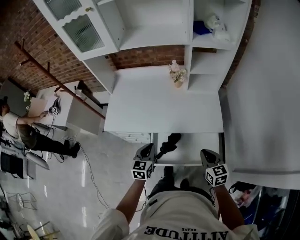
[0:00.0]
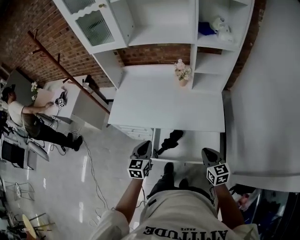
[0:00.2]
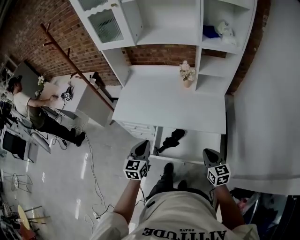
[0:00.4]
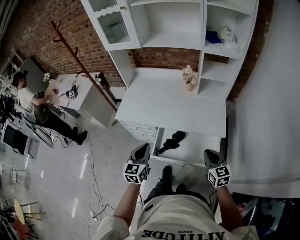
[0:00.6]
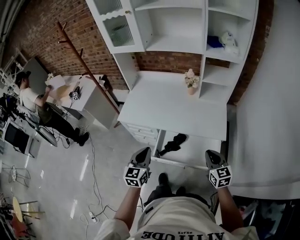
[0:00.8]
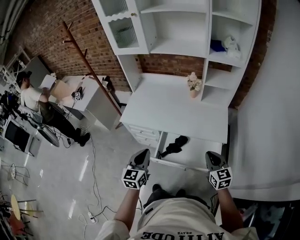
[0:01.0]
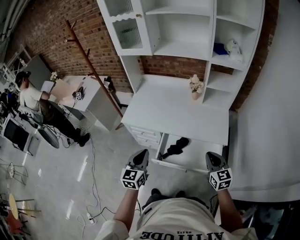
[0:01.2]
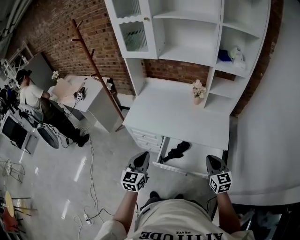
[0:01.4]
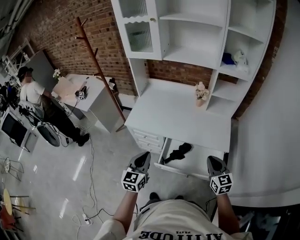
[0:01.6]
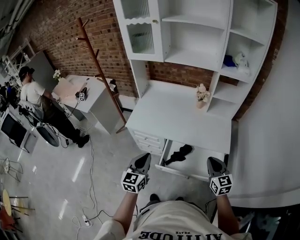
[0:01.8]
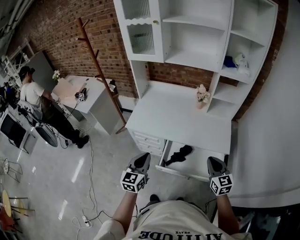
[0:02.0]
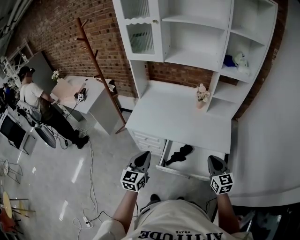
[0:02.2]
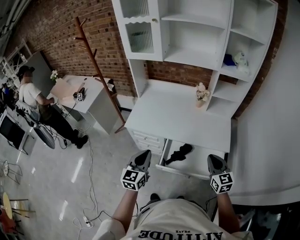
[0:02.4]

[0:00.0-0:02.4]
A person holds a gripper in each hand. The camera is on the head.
0:00.0 to 0:01.2: The right gripper shifts some 5 cm upward. The left gripper travels backward, upward and to the left by about 20 cm.
0:01.2 to 0:02.4: The right gripper shifts by about 5 cm, while the left gripper ends up about 5 cm from where it was.

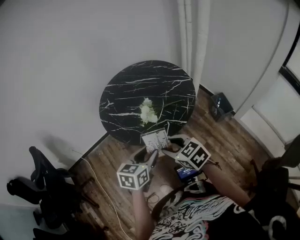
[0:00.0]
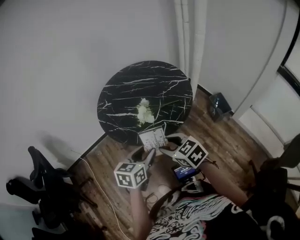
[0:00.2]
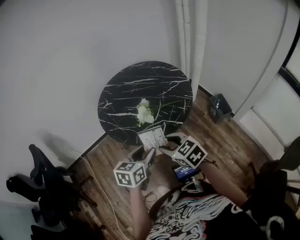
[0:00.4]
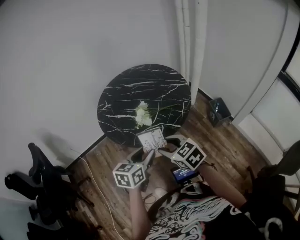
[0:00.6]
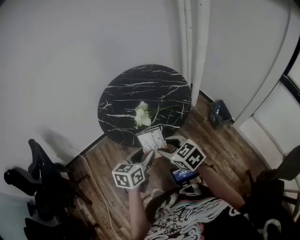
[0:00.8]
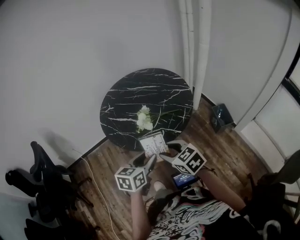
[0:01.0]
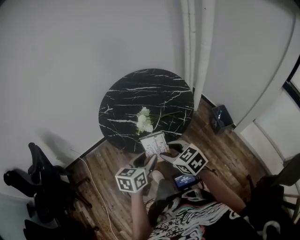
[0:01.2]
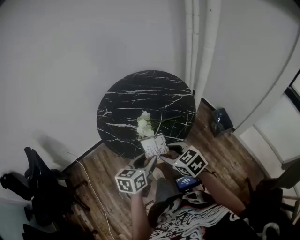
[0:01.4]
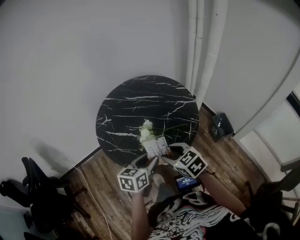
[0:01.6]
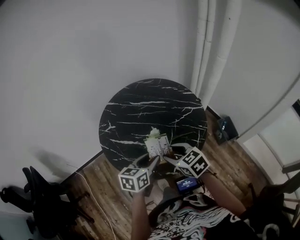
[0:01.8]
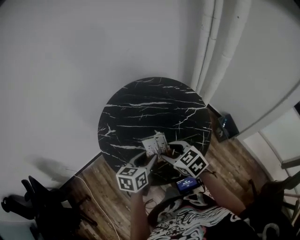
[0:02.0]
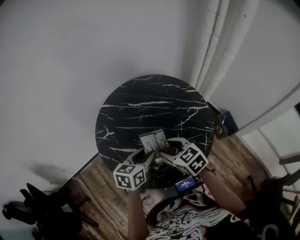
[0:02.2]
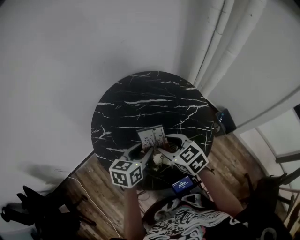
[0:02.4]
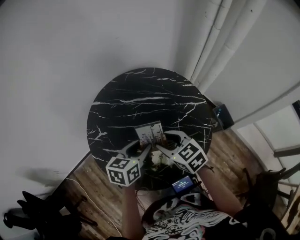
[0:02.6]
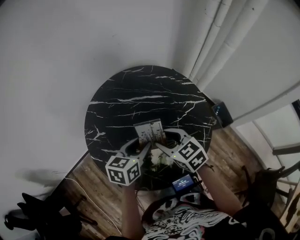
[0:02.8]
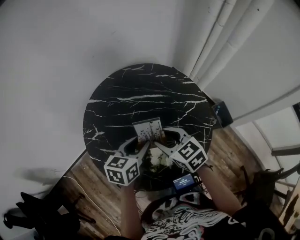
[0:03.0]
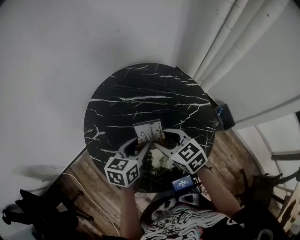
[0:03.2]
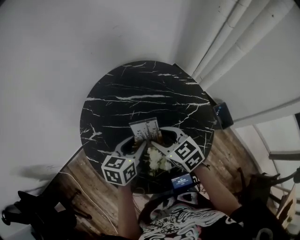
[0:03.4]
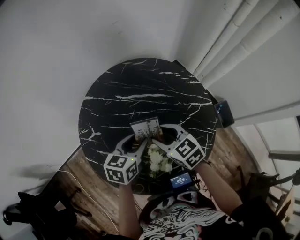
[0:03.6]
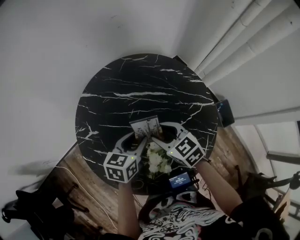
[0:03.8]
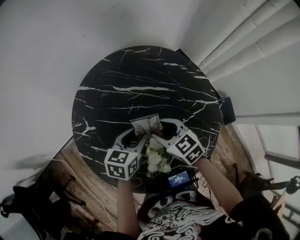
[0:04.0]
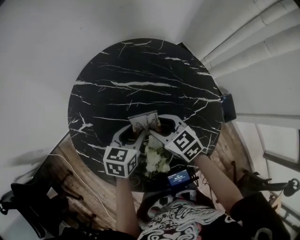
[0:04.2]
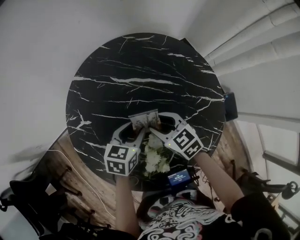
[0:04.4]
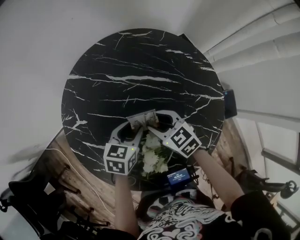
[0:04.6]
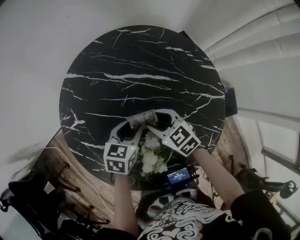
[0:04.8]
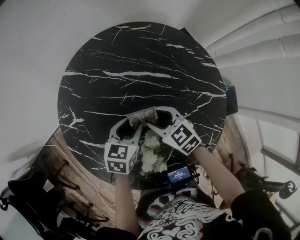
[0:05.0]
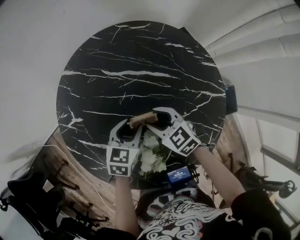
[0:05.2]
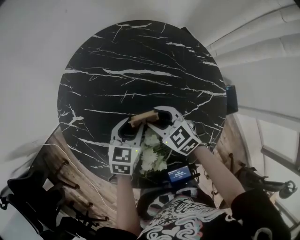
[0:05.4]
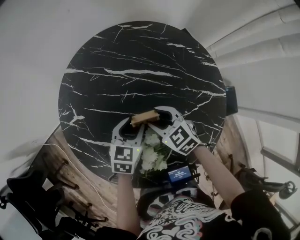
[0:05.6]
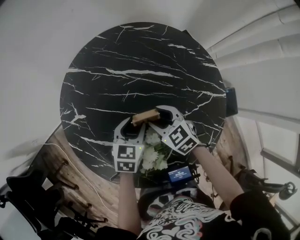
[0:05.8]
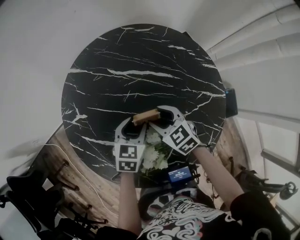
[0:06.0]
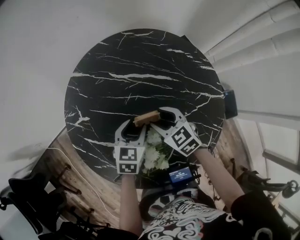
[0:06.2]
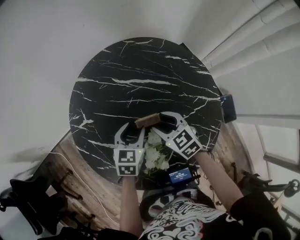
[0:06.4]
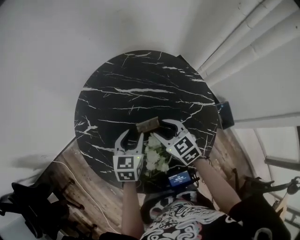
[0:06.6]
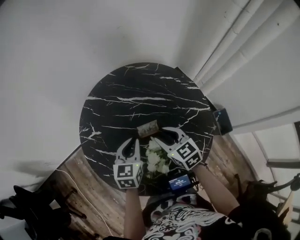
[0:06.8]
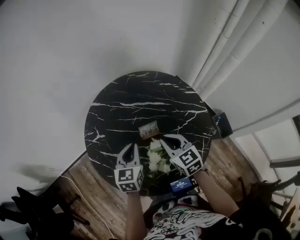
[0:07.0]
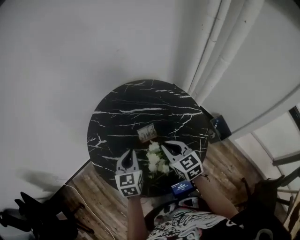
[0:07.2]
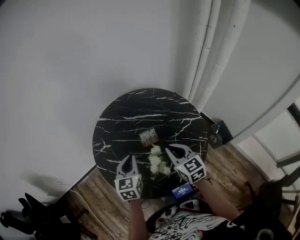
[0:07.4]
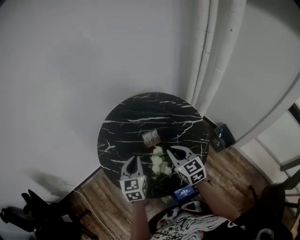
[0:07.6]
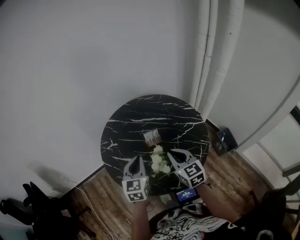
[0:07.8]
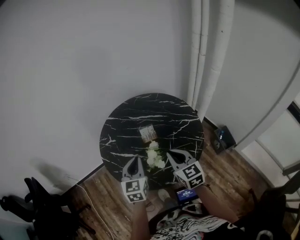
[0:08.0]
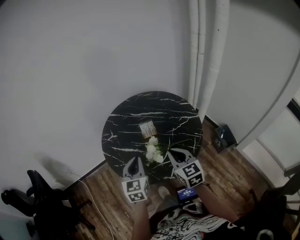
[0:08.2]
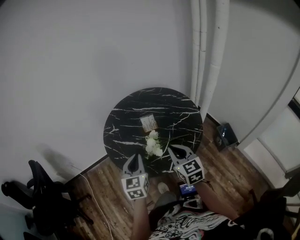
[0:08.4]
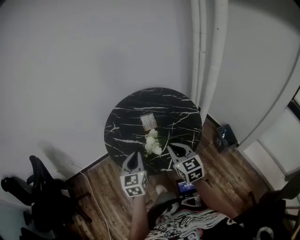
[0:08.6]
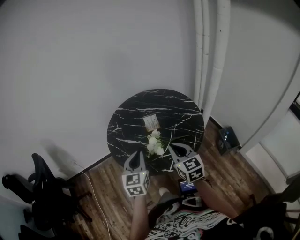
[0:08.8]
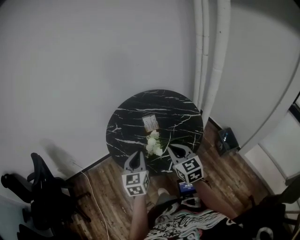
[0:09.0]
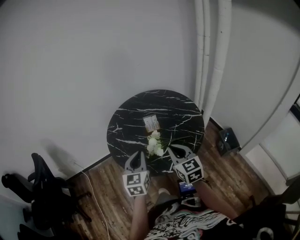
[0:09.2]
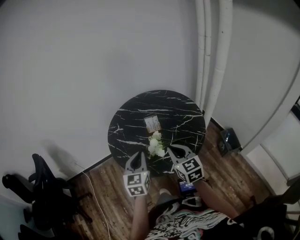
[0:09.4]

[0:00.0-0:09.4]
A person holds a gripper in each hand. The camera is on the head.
0:00.0 to 0:01.6: The two grippers go approximately 10 cm forward.
0:01.6 to 0:03.2: The grippers both shift forward by about 25 cm.
0:03.2 to 0:04.8: The grippers both shift downward and forward by some 15 cm.
0:04.8 to 0:06.2: The grippers make only small movements.
0:06.2 to 0:07.8: Both grippers move upward and backward, about 25 cm. The left gripper changes its angle by some 30 degrees, and closes; the right gripper turns by about 30 degrees, and closes.
0:07.8 to 0:09.4: Both grippers move backward, approximately 10 cm.

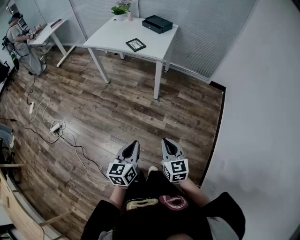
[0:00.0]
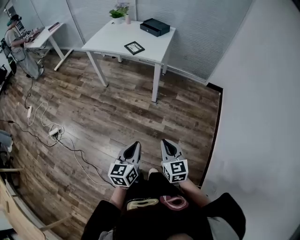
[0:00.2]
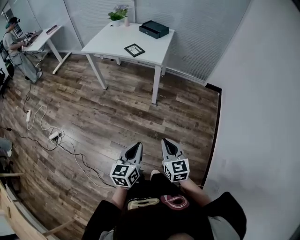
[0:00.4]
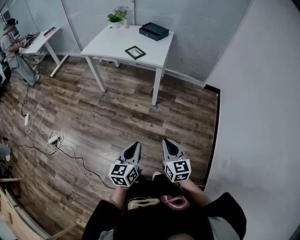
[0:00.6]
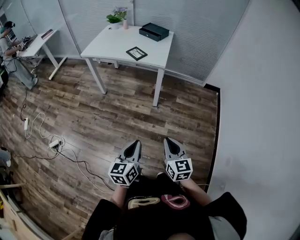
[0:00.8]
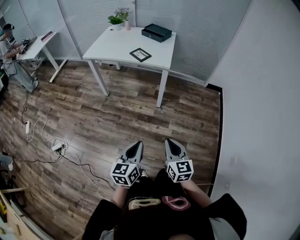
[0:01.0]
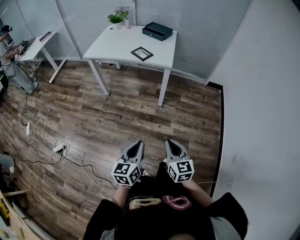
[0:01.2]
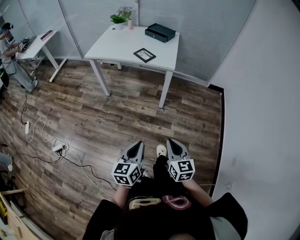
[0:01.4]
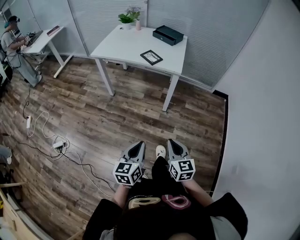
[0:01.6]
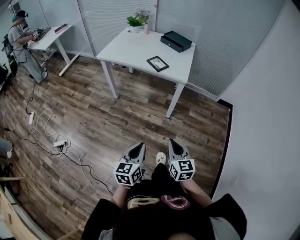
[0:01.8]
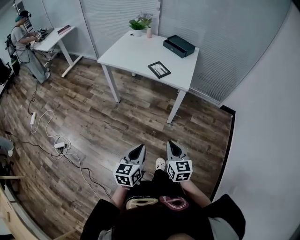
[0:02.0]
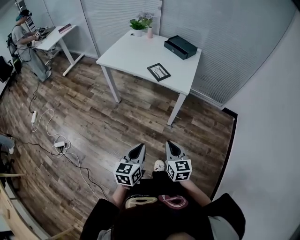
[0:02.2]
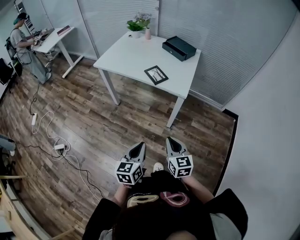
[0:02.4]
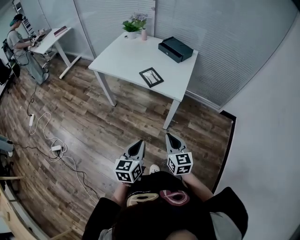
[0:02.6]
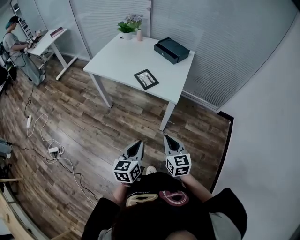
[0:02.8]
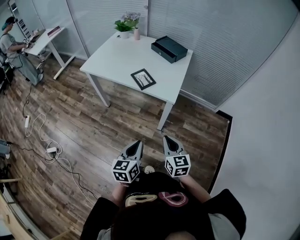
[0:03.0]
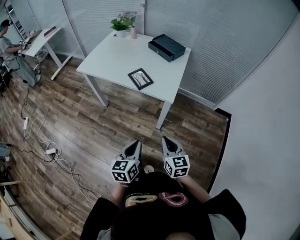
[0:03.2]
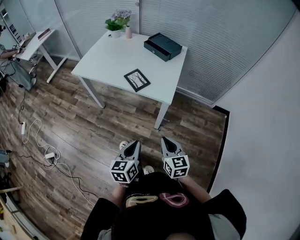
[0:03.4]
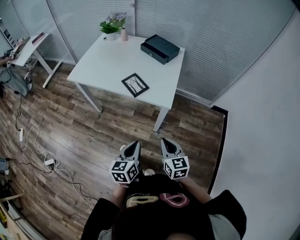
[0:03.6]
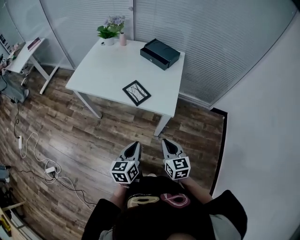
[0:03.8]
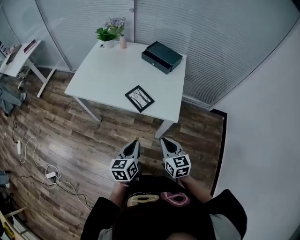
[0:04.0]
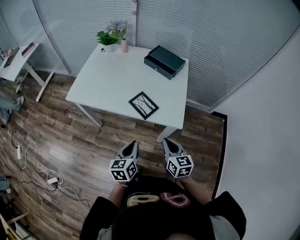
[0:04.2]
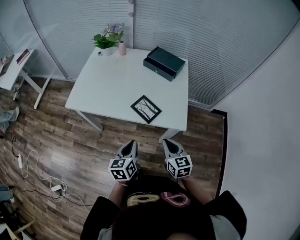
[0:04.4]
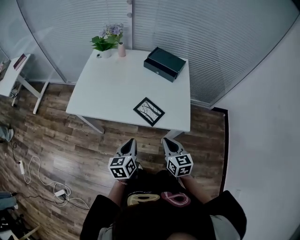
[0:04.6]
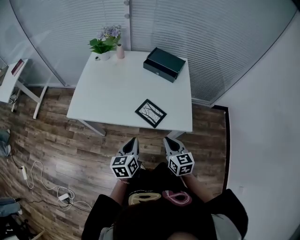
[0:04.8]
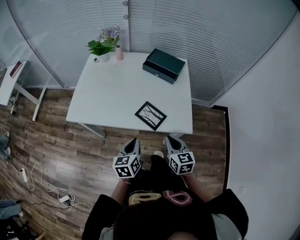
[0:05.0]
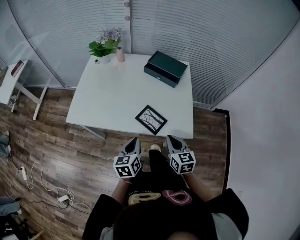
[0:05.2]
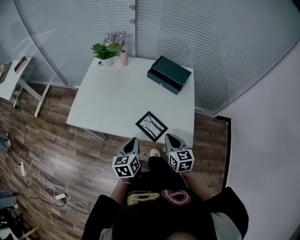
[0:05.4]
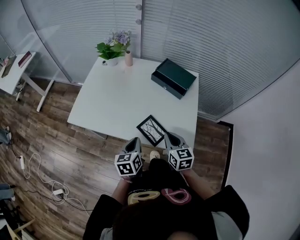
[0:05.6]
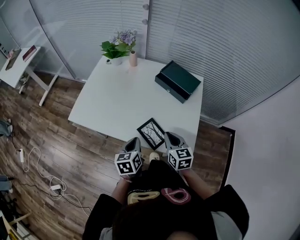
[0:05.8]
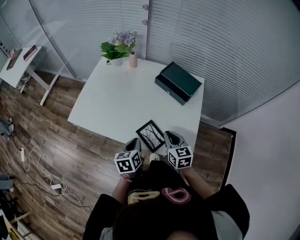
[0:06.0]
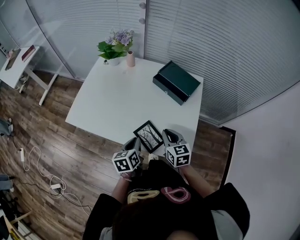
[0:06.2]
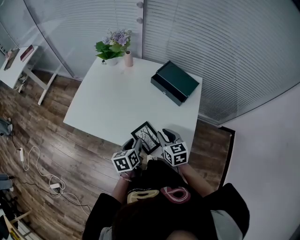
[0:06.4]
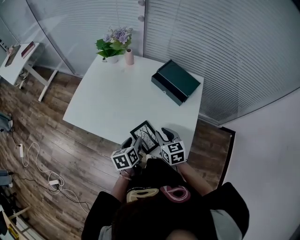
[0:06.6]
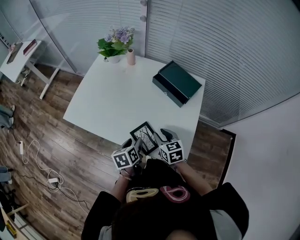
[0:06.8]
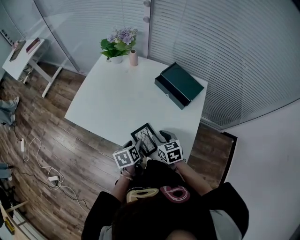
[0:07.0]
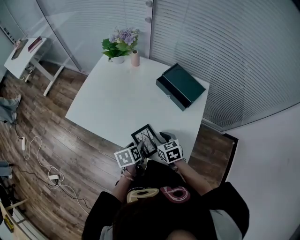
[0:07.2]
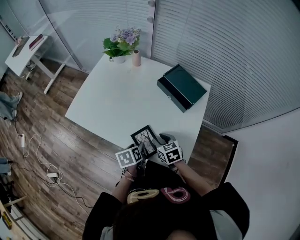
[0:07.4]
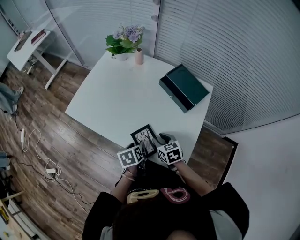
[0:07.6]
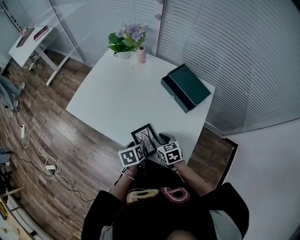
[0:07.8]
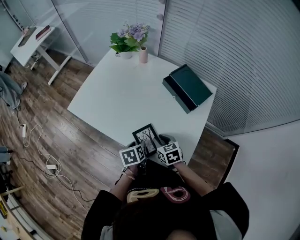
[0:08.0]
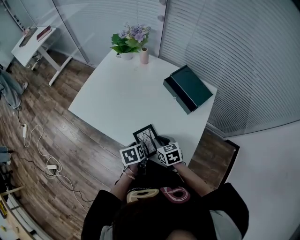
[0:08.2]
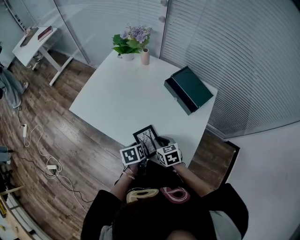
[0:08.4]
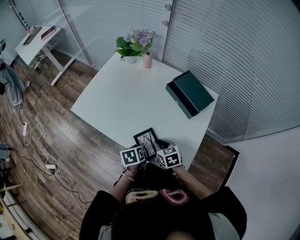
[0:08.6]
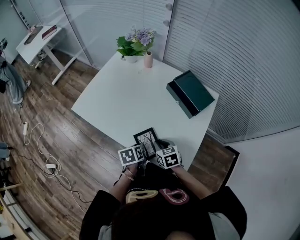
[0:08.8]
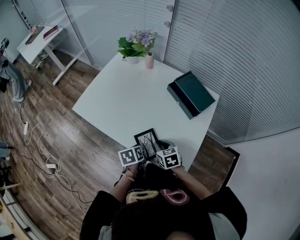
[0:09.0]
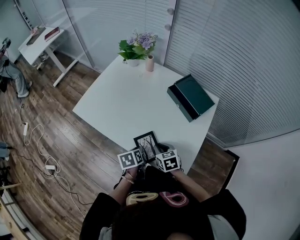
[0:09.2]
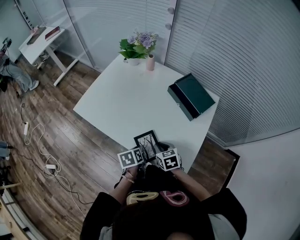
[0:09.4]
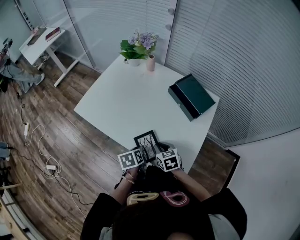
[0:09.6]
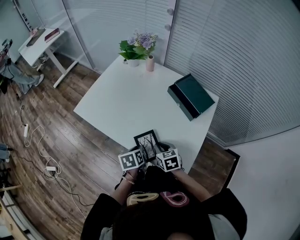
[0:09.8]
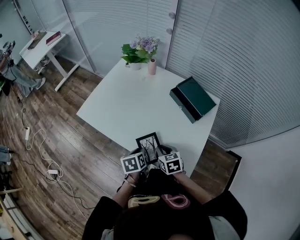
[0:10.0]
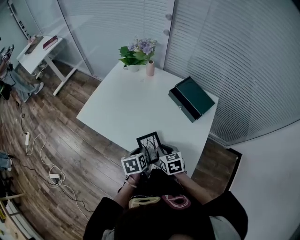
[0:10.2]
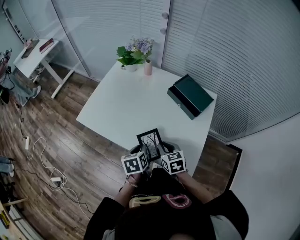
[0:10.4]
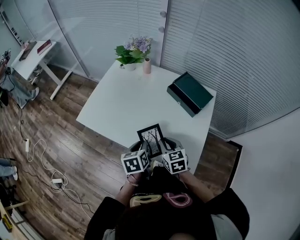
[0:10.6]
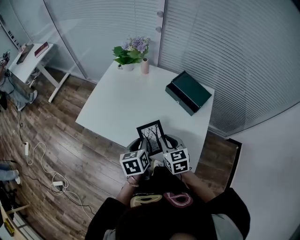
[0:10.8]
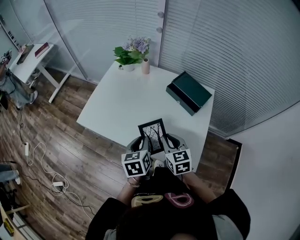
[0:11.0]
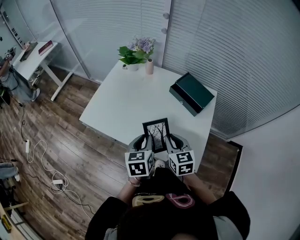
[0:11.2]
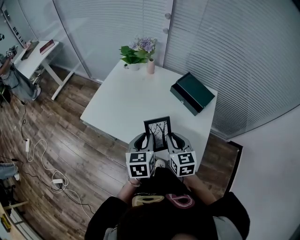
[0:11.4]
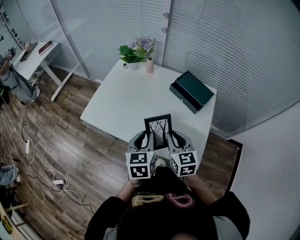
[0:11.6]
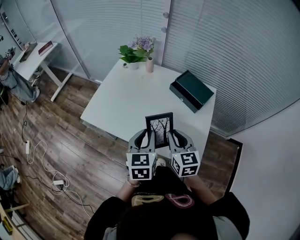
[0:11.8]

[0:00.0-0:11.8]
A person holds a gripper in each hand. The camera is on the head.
0:00.0 to 0:01.4: The right gripper is displaced to the left by approximately 15 cm, while the left gripper heads to the left and forward, covering roughly 20 cm.
0:01.4 to 0:03.0: The grippers both shift forward by roughly 30 cm.
0:03.0 to 0:04.4: Both grippers move forward and to the left, about 25 cm.
0:04.4 to 0:06.0: The two grippers go some 20 cm forward.
0:06.0 to 0:07.4: The grippers both shift downward by about 5 cm. The right gripper changes its angle by roughly 30 degrees, and opens its fingers; the left gripper rotates approximately 20 degrees, and opens.
0:07.4 to 0:08.8: The left gripper closes up.
0:08.8 to 0:10.4: The grippers both shift upward by some 5 cm.
0:10.4 to 0:11.8: Both grippers move upward, roughly 15 cm. The left gripper turns by some 30 degrees. The right gripper swivels roughly 20 degrees.
